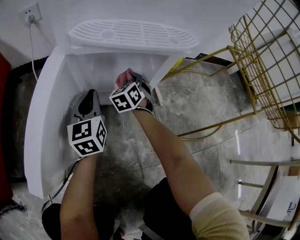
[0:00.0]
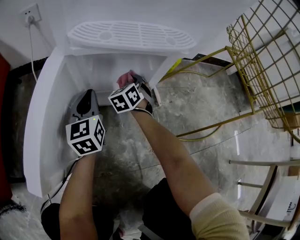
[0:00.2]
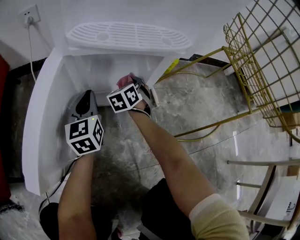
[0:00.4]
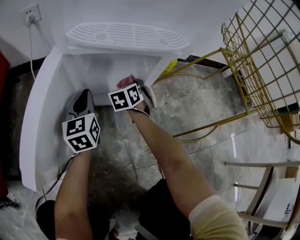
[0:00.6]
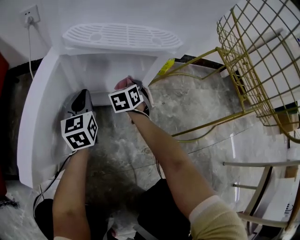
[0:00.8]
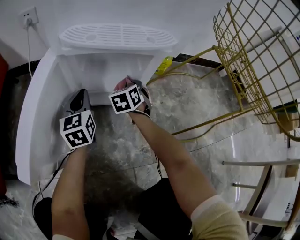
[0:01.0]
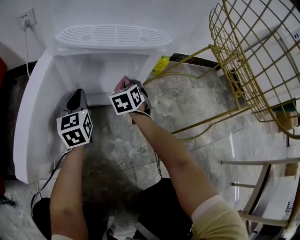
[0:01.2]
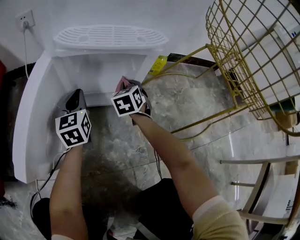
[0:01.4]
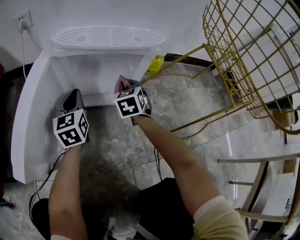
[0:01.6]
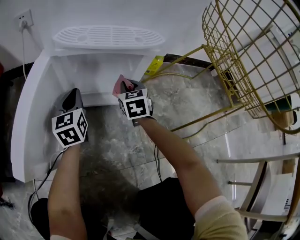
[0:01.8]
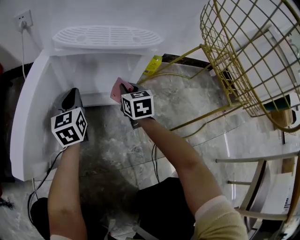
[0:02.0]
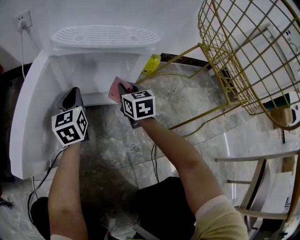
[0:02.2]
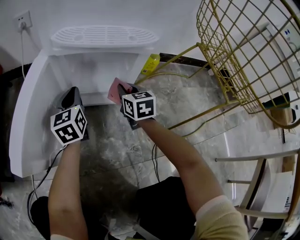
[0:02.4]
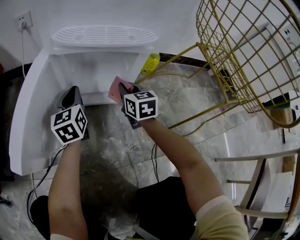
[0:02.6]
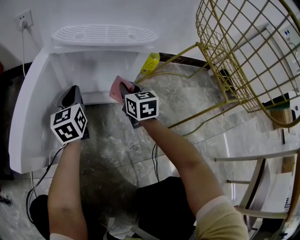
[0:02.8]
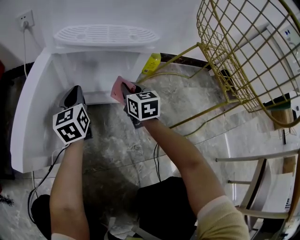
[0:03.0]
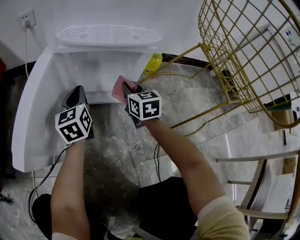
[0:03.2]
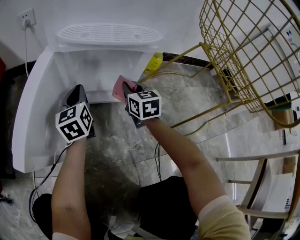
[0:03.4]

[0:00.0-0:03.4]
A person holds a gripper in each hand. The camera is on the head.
0:00.0 to 0:01.6: The right gripper moves upward and to the right, roughly 5 cm.
0:01.6 to 0:03.4: The right gripper changes its angle by about 20 degrees.

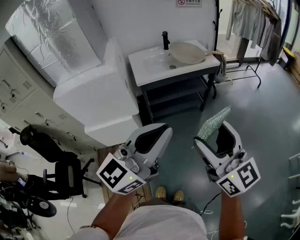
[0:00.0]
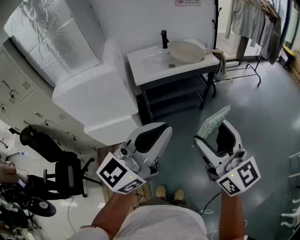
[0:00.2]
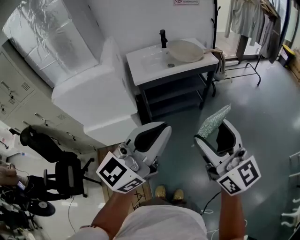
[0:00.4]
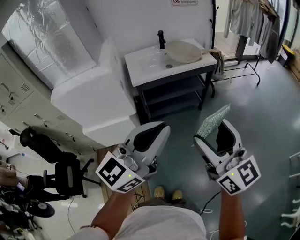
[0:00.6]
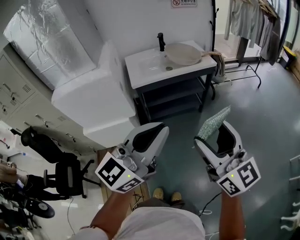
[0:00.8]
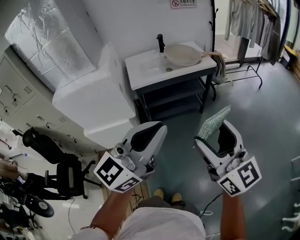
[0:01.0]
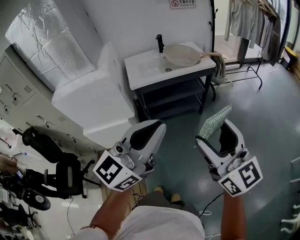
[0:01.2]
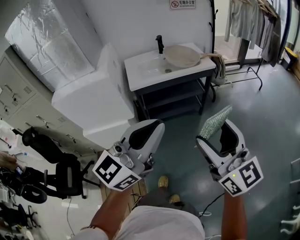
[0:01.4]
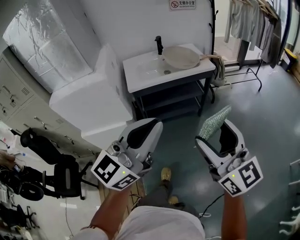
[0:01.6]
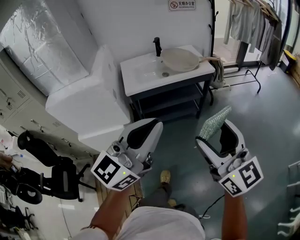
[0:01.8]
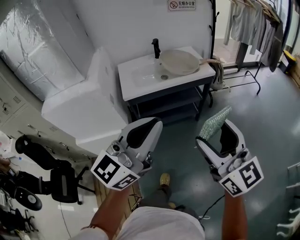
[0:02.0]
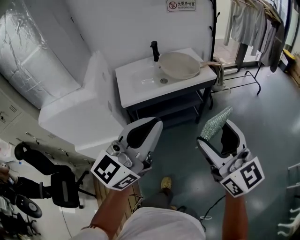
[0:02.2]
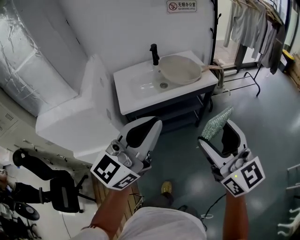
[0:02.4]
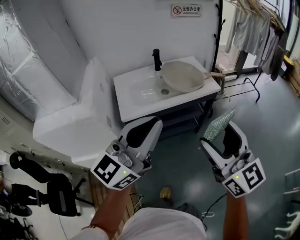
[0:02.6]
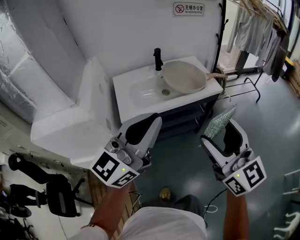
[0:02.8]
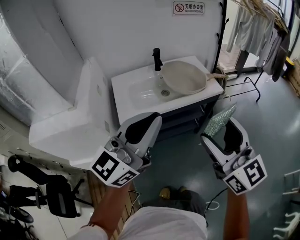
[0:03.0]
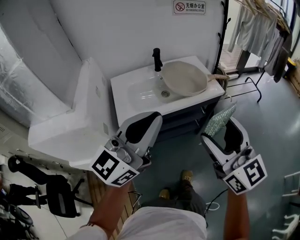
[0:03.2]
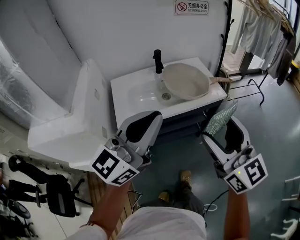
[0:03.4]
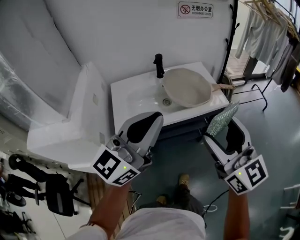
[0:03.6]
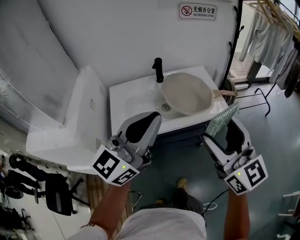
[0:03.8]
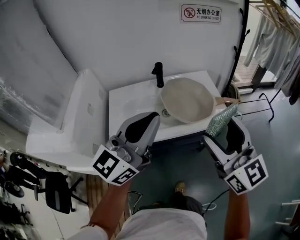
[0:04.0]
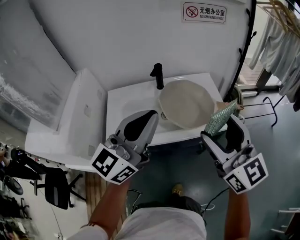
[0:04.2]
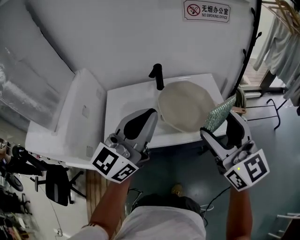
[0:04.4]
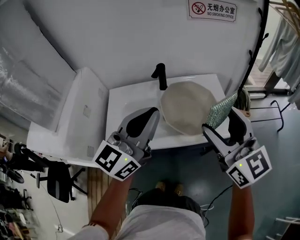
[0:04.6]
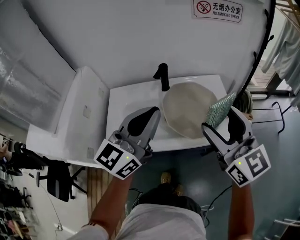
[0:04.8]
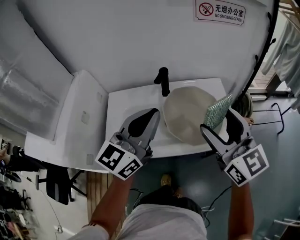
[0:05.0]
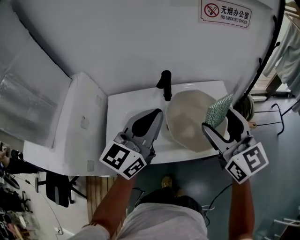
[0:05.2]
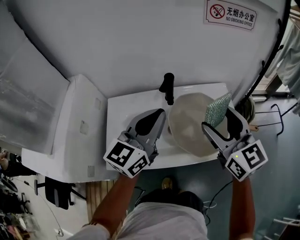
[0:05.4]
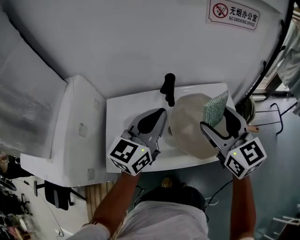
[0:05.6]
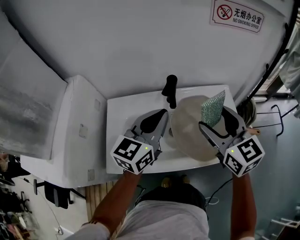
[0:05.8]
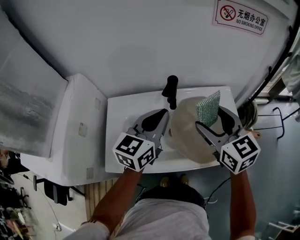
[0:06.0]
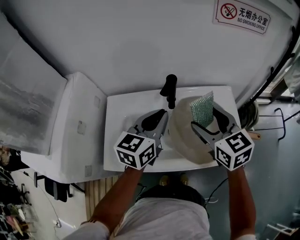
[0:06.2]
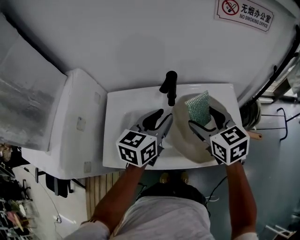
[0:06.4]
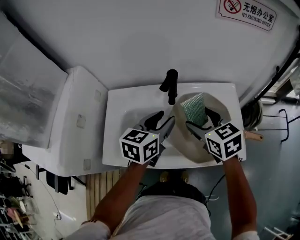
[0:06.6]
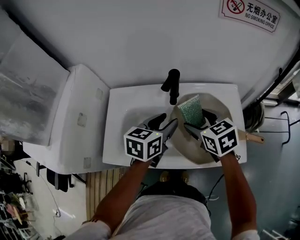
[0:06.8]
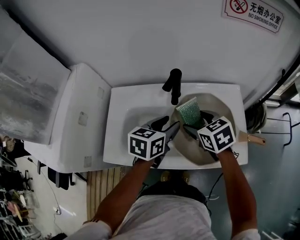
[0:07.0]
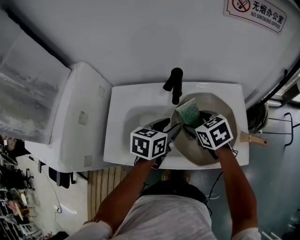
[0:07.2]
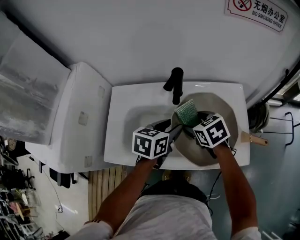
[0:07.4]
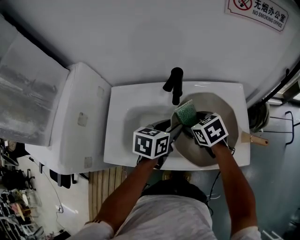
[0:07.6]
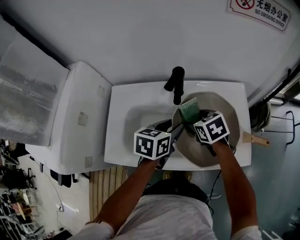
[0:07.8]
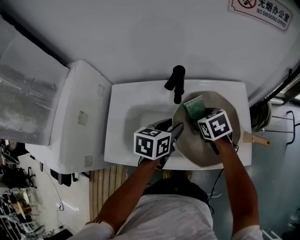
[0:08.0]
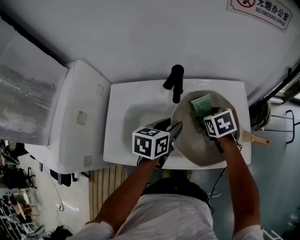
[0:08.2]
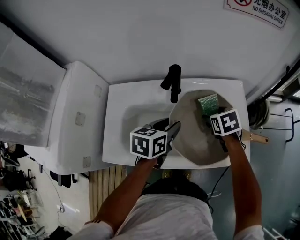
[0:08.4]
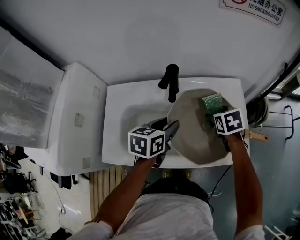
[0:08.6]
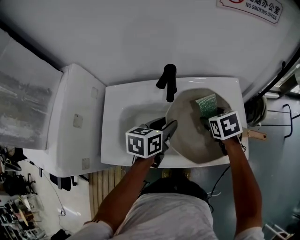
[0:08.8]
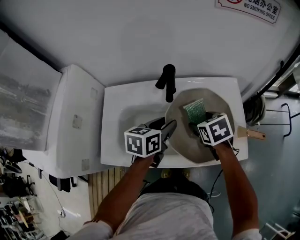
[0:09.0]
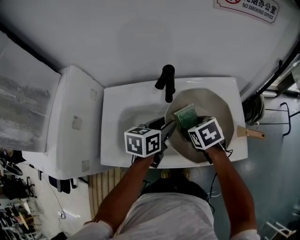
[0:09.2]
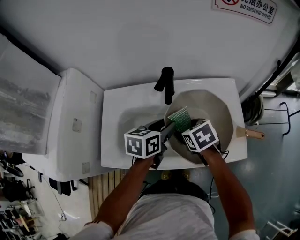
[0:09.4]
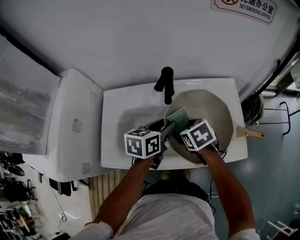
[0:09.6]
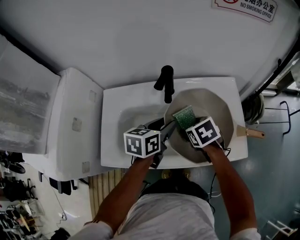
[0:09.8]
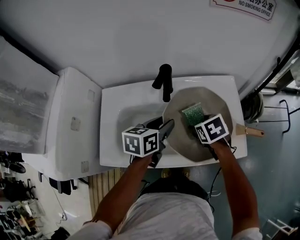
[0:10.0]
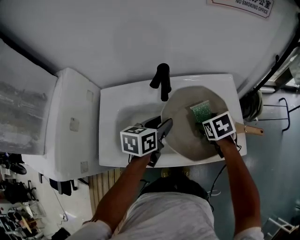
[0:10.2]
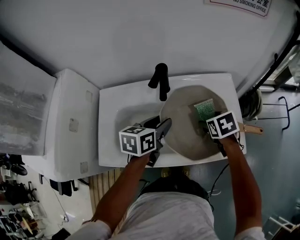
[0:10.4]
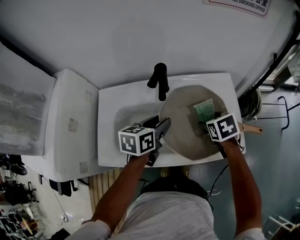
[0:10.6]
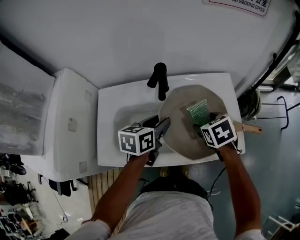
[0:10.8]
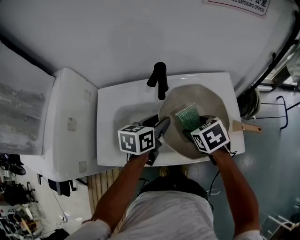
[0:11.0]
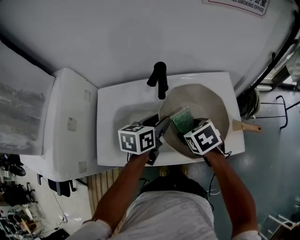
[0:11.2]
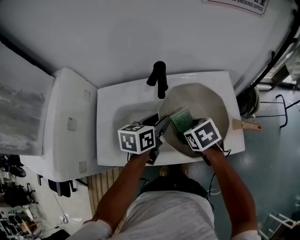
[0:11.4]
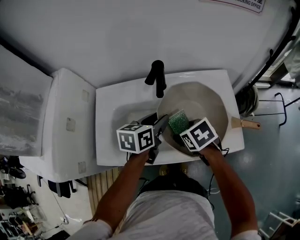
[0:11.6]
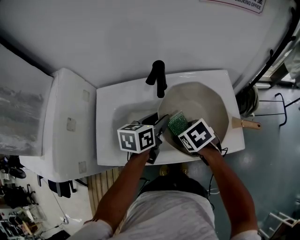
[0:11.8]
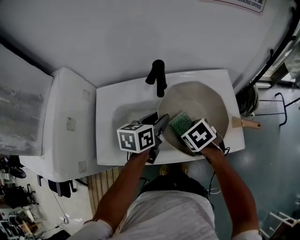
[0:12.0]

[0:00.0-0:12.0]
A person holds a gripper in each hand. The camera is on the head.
0:00.0 to 0:01.6: The right gripper shifts roughly 10 cm to the right. The left gripper moves forward, some 5 cm.
0:01.6 to 0:03.0: Both grippers move forward, about 25 cm.
0:03.0 to 0:04.4: The two grippers go about 25 cm forward.
0:04.4 to 0:06.0: Both grippers move forward and downward, some 25 cm. The left gripper changes its angle by roughly 20 degrees, while the right gripper swivels about 20 degrees.
0:06.0 to 0:07.6: The two grippers go about 15 cm downward. The right gripper points its fingers approximately 30 degrees further downward. Meanwhile the left gripper turns by some 30 degrees, and opens.
0:07.6 to 0:09.0: The right gripper moves to the right, roughly 5 cm.
0:09.0 to 0:10.4: The right gripper moves to the right, approximately 5 cm.
0:10.4 to 0:12.0: The right gripper moves to the left and backward, approximately 10 cm.

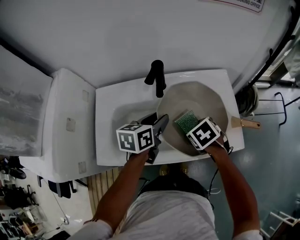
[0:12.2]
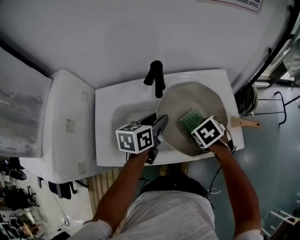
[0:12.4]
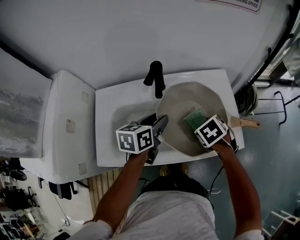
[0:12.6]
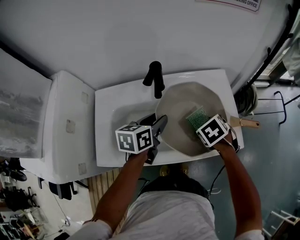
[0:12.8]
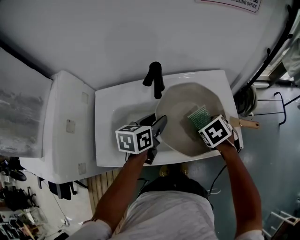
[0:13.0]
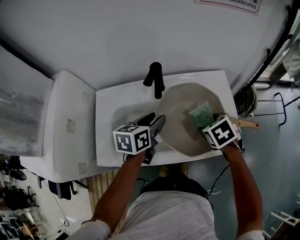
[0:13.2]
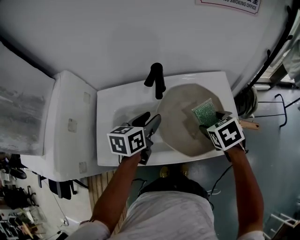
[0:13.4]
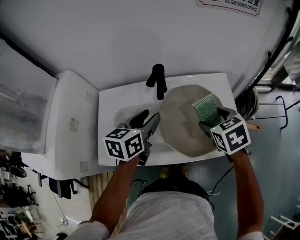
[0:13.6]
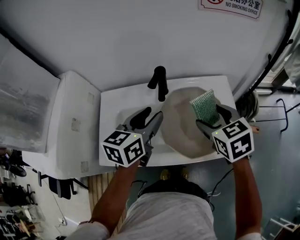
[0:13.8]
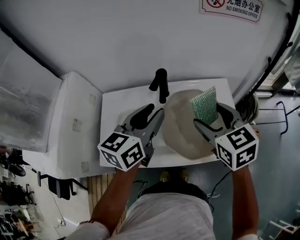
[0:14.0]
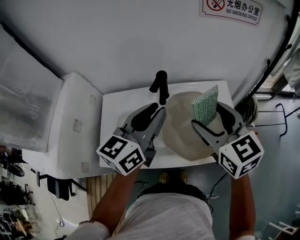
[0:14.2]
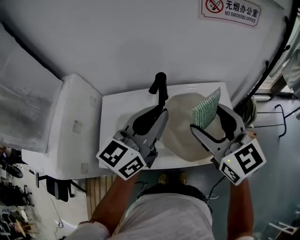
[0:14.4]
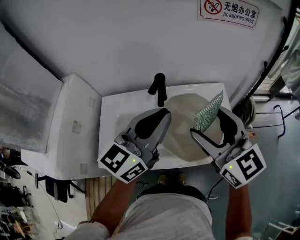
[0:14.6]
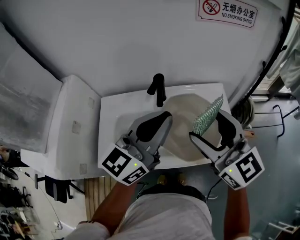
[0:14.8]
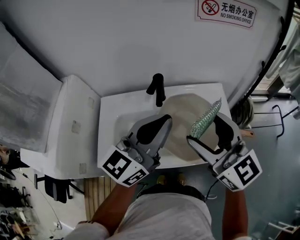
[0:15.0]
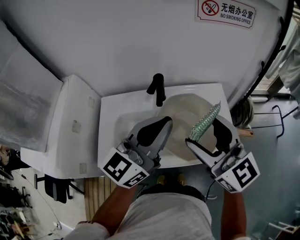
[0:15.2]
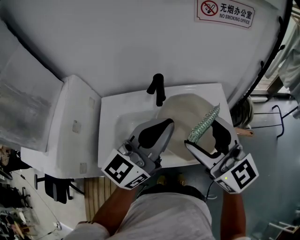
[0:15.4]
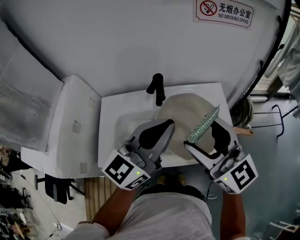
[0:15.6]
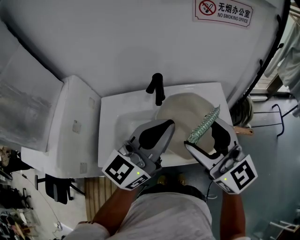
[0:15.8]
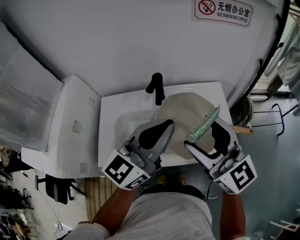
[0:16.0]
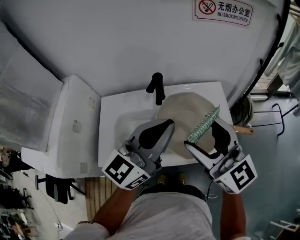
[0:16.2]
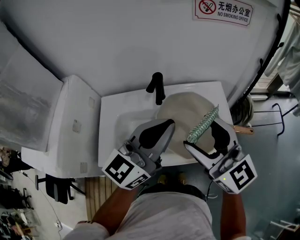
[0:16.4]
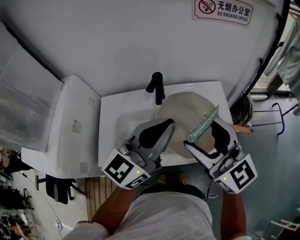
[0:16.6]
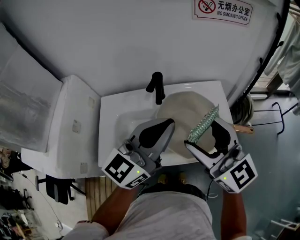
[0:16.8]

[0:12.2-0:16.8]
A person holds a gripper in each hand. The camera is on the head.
0:12.2 to 0:13.8: The grippers both shift upward by approximately 15 cm. The right gripper angles its fingers upward, by approximately 30 degrees.
0:13.8 to 0:15.2: The left gripper goes some 15 cm upward, backward and to the right, changes its angle by some 30 degrees, and closes up; the right gripper heads upward and backward, covering approximately 15 cm, and points its fingers approximately 40 degrees further upward.
0:15.2 to 0:16.8: There are only small adjustments of the grippers.

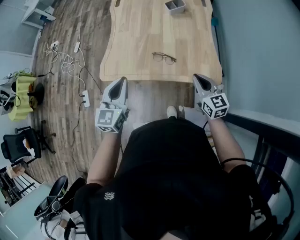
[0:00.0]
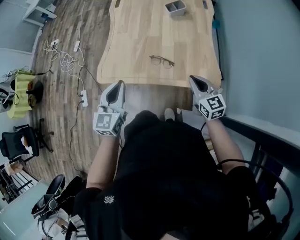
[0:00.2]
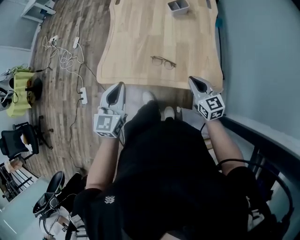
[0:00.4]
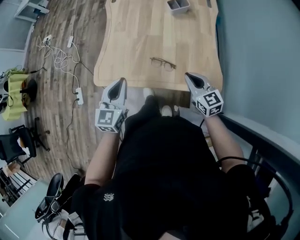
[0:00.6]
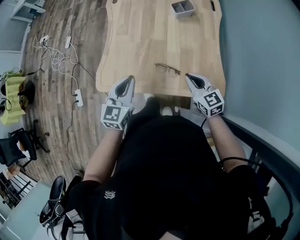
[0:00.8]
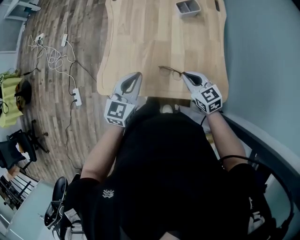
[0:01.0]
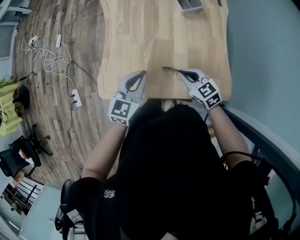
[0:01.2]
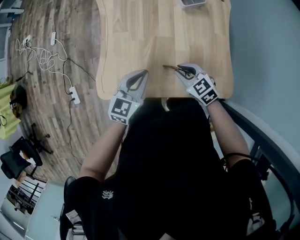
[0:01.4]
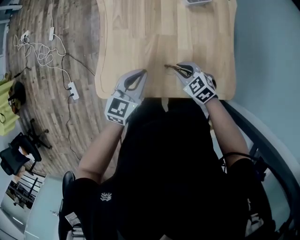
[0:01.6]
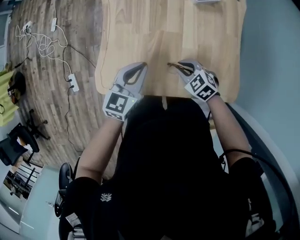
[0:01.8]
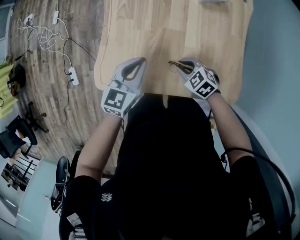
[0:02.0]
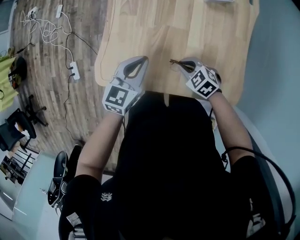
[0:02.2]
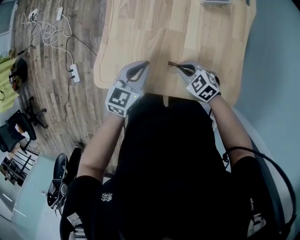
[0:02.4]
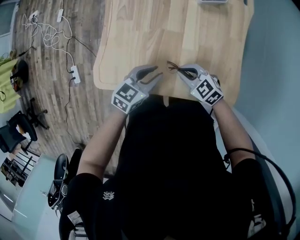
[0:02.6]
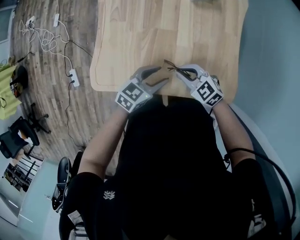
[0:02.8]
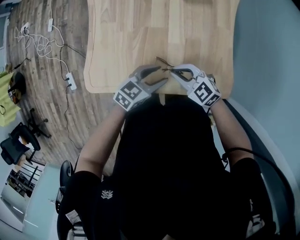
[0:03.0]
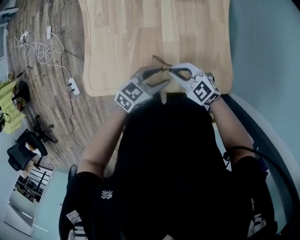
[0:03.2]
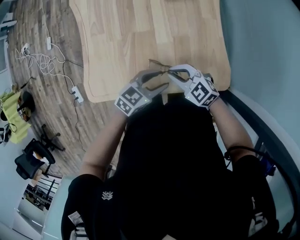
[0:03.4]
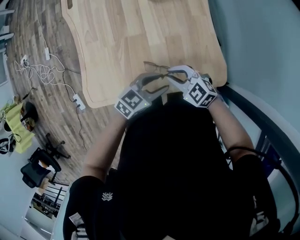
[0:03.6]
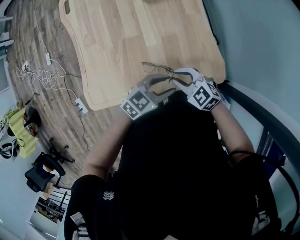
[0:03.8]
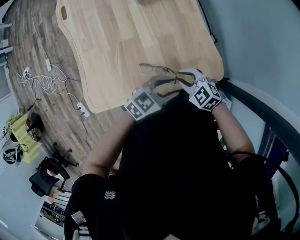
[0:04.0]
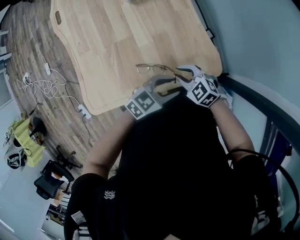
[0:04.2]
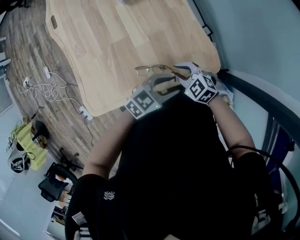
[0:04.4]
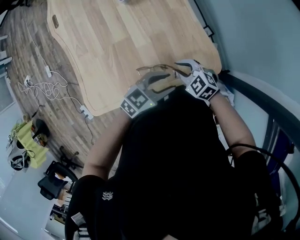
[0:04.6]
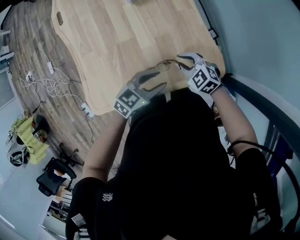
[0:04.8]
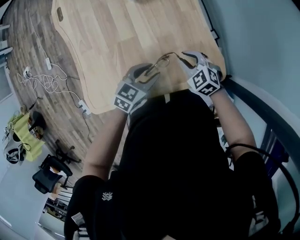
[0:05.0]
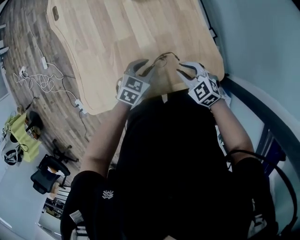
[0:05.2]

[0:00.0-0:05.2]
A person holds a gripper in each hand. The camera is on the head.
0:00.0 to 0:01.8: The right gripper is displaced forward, downward and to the left by some 30 cm, and points its fingers some 40 degrees further downward. Meanwhile the left gripper shifts approximately 30 cm forward and downward, and changes its angle by some 20 degrees.
0:01.8 to 0:03.4: The right gripper moves approximately 10 cm, while the left gripper changes place by approximately 20 cm, turns by roughly 30 degrees, and opens.
0:03.4 to 0:05.2: The right gripper ends up some 10 cm from where it was, and turns by some 20 degrees. The left gripper moves some 10 cm, and rotates approximately 20 degrees.
